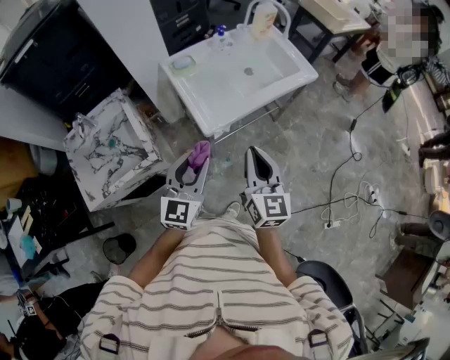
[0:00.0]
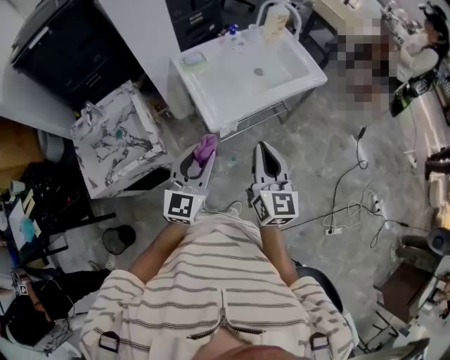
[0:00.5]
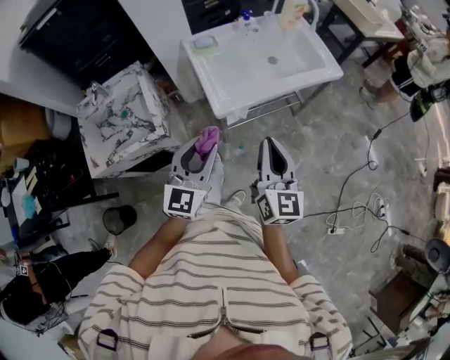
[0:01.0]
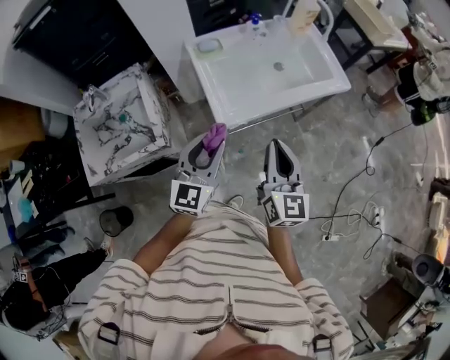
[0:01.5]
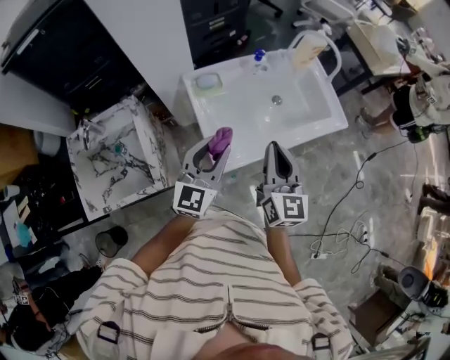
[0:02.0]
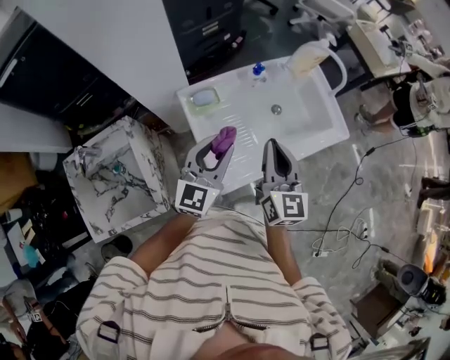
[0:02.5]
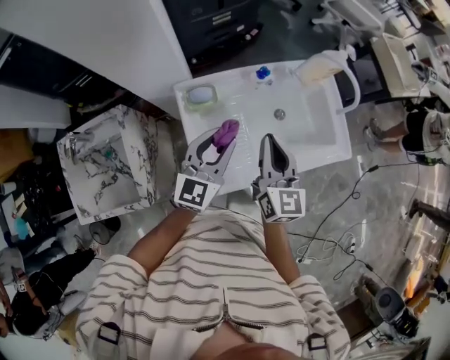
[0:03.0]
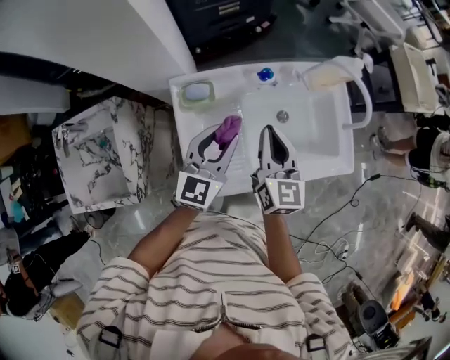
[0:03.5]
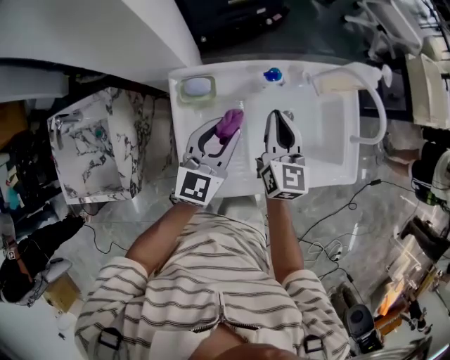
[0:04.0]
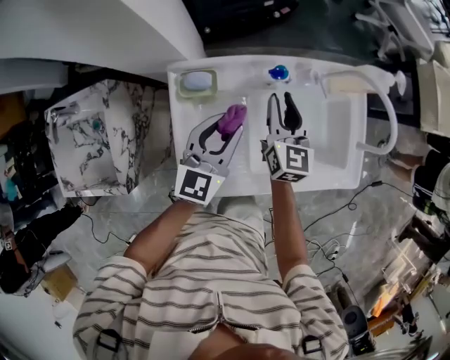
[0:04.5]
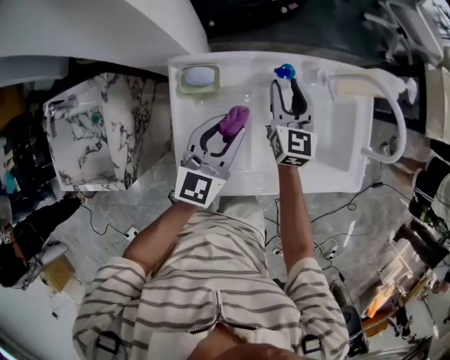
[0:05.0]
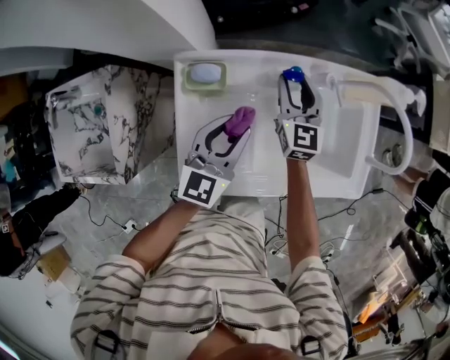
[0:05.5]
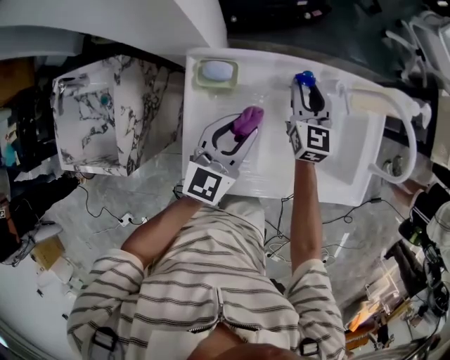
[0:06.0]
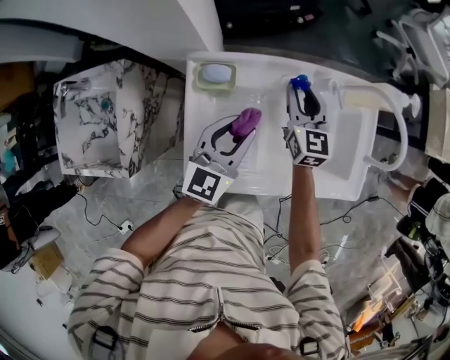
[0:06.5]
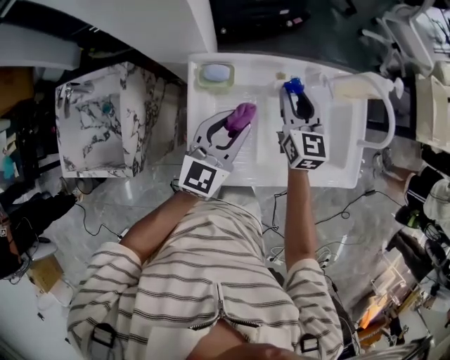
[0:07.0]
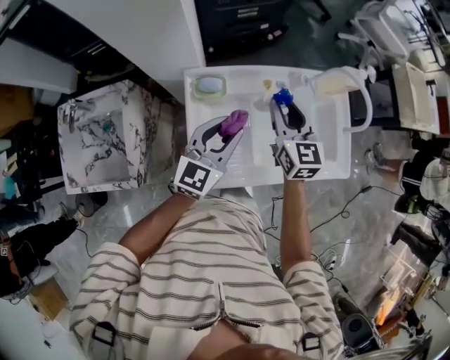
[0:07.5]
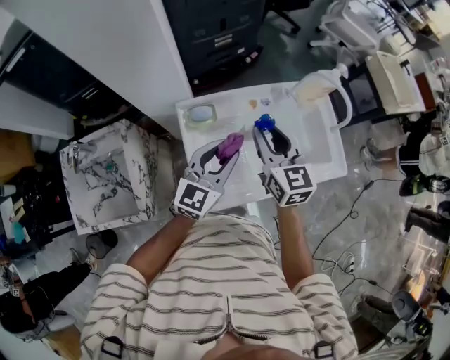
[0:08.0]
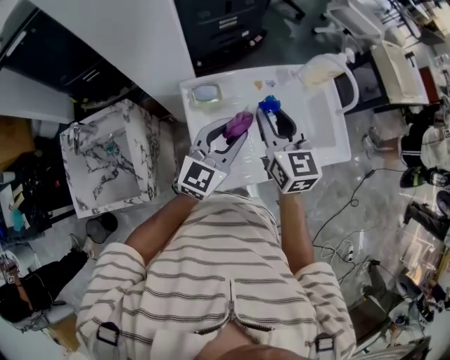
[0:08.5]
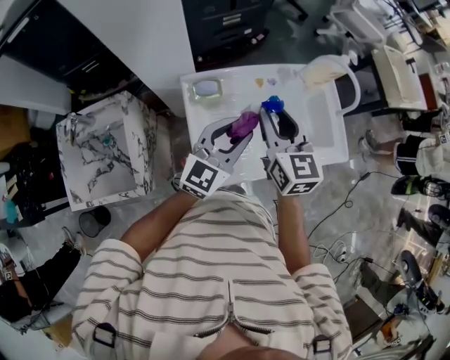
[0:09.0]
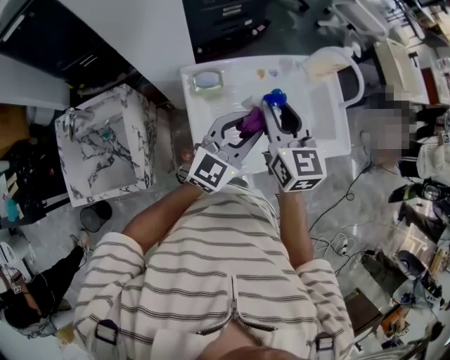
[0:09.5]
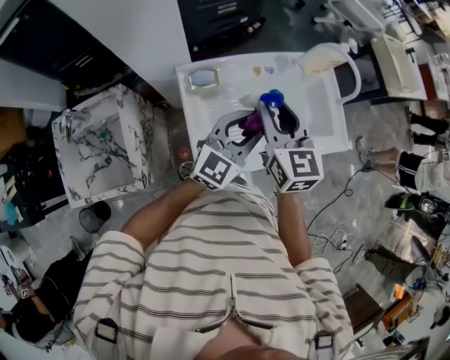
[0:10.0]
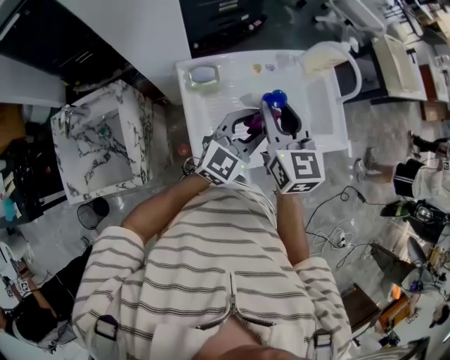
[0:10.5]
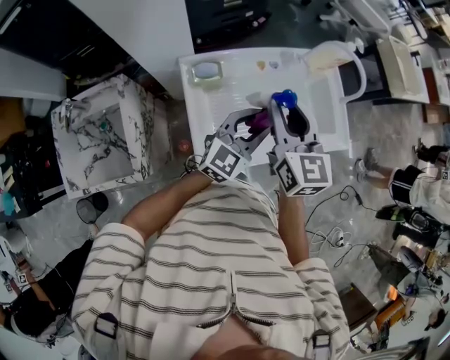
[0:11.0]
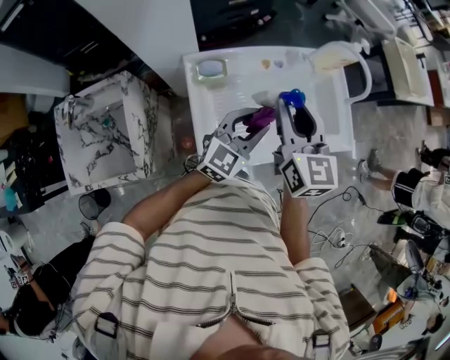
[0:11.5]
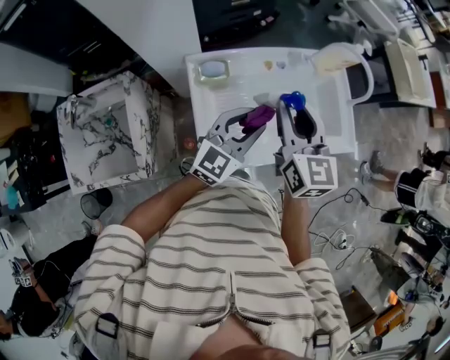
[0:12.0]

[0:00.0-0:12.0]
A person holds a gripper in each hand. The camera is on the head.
0:00.0 to 0:02.0: Both grippers move forward, approximately 20 cm.
0:02.0 to 0:04.0: The left gripper shifts roughly 25 cm forward. The right gripper shifts roughly 30 cm forward and downward.
0:04.0 to 0:06.0: The right gripper goes roughly 15 cm forward and downward, and opens.
0:06.0 to 0:08.0: The right gripper shifts some 25 cm upward and backward, while the left gripper moves upward and backward, approximately 15 cm.
0:08.0 to 0:10.0: The left gripper goes some 5 cm to the right.
0:10.0 to 0:12.0: There are only small adjustments of the grippers.

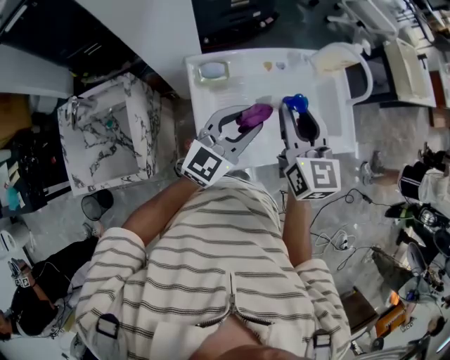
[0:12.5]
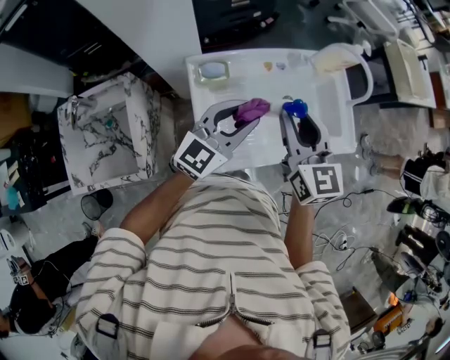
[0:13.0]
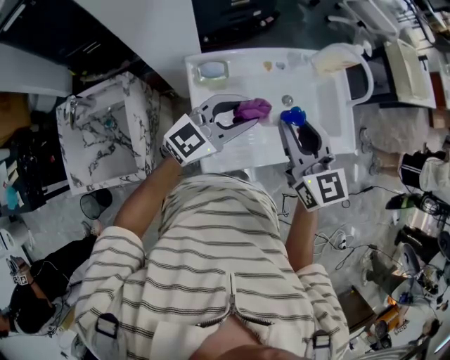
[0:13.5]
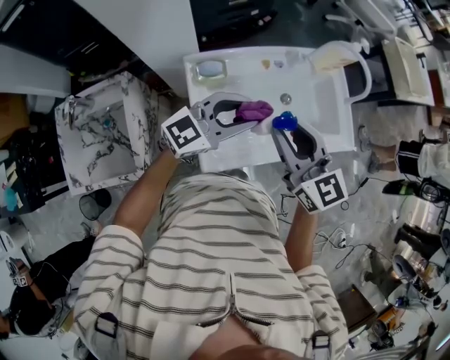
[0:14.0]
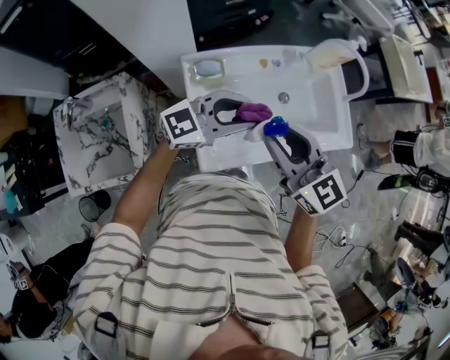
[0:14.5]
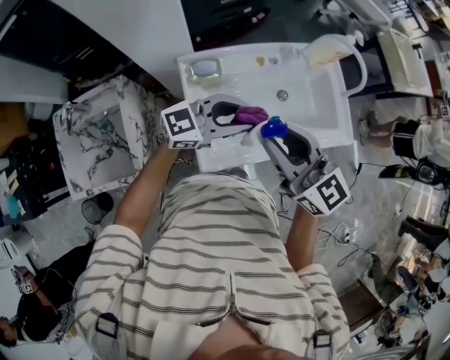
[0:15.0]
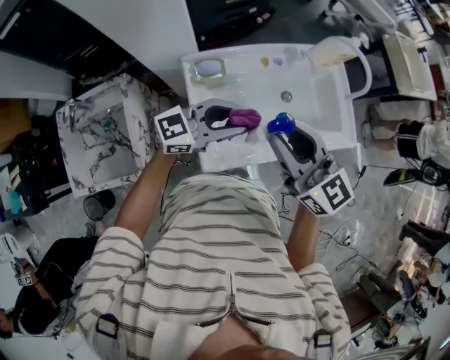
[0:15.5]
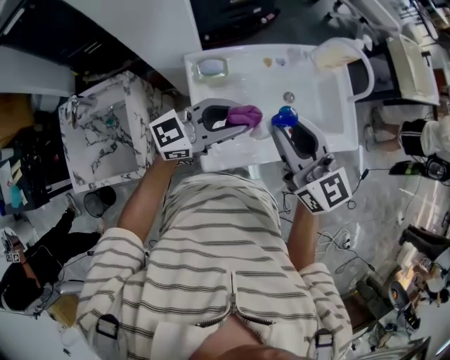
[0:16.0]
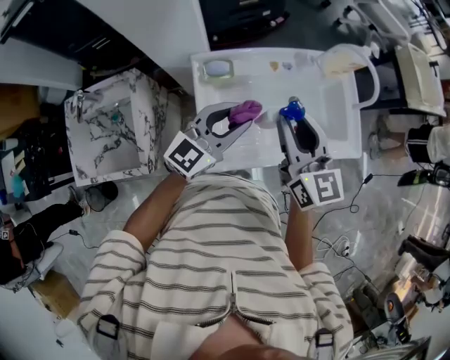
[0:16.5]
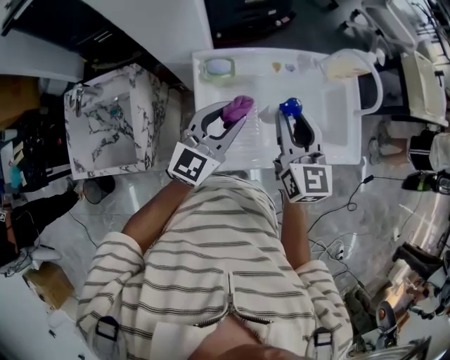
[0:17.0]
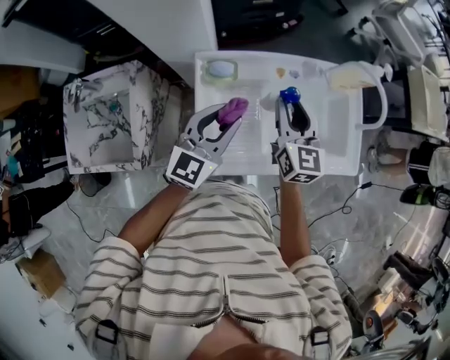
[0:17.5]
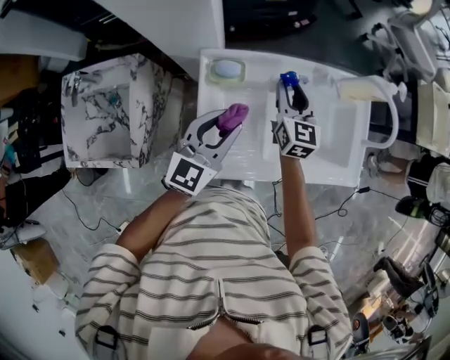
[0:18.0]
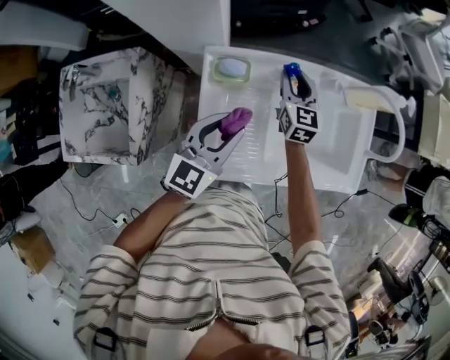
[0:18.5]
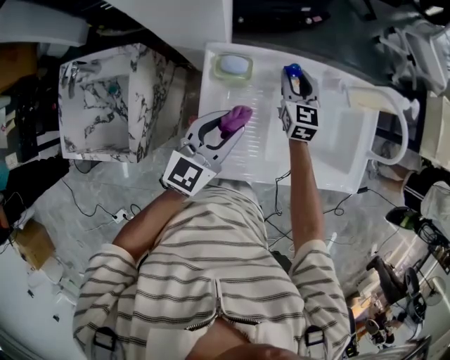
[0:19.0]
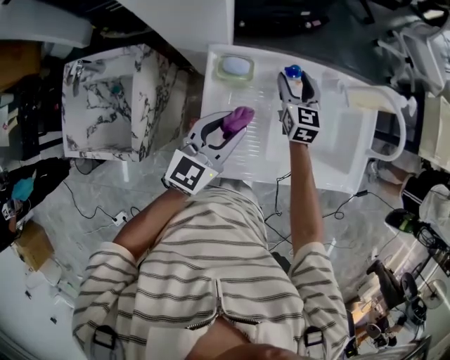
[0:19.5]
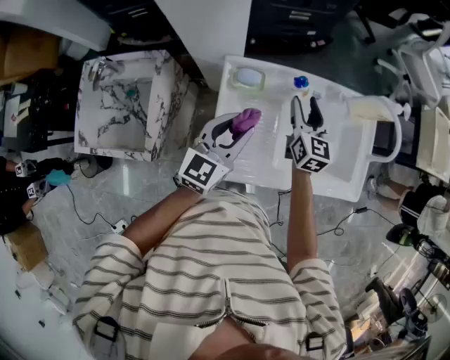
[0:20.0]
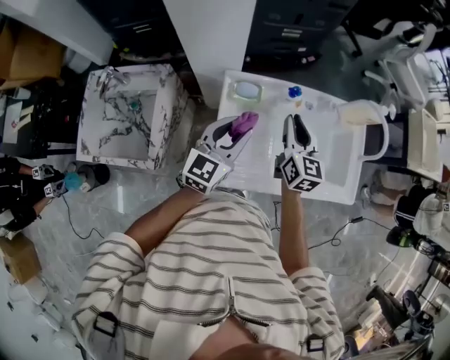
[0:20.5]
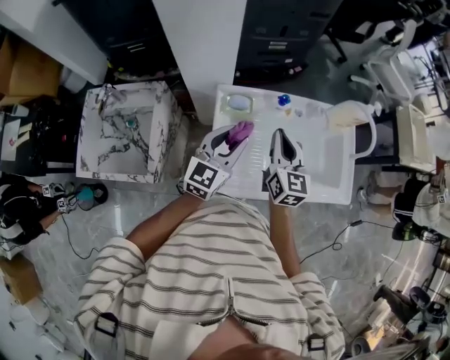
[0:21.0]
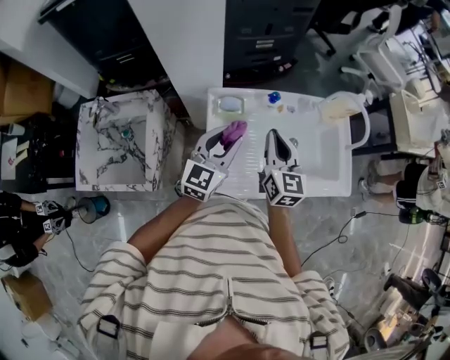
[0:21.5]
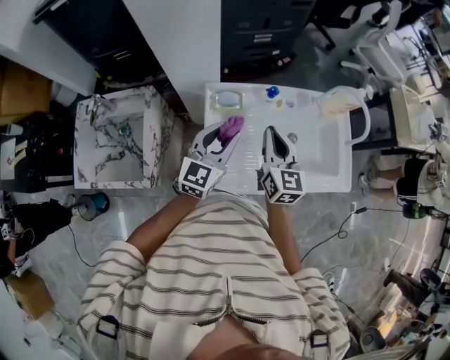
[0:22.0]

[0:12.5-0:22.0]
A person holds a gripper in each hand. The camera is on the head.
0:12.5 to 0:14.5: The right gripper goes some 10 cm backward, and rotates about 30 degrees; the left gripper rotates some 30 degrees.
0:14.5 to 0:16.5: The right gripper changes place by about 5 cm. The left gripper changes its angle by some 30 degrees.
0:16.5 to 0:18.0: The right gripper goes roughly 25 cm forward and downward. The left gripper moves some 10 cm, and changes its angle by about 20 degrees.
0:20.0 to 0:22.0: The right gripper travels backward and upward by approximately 15 cm, and closes.

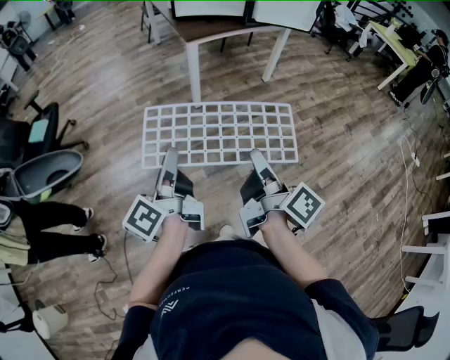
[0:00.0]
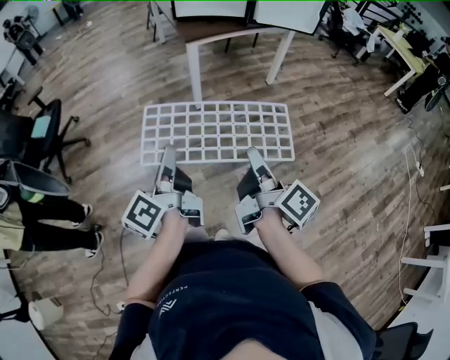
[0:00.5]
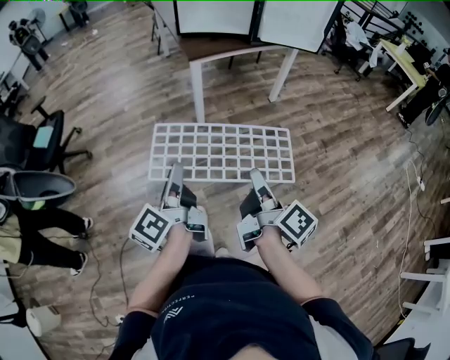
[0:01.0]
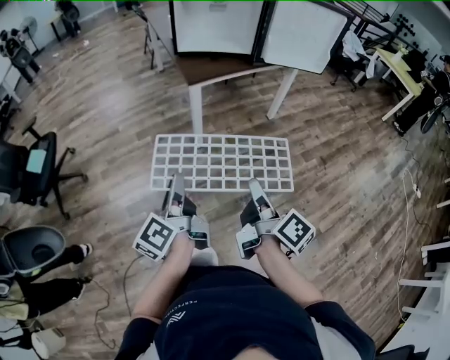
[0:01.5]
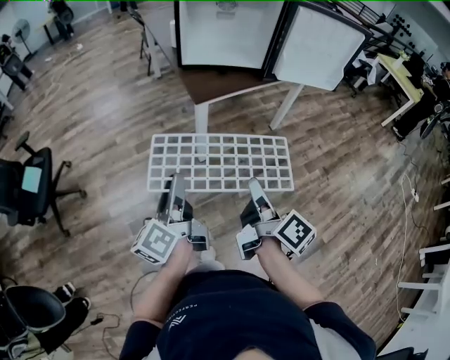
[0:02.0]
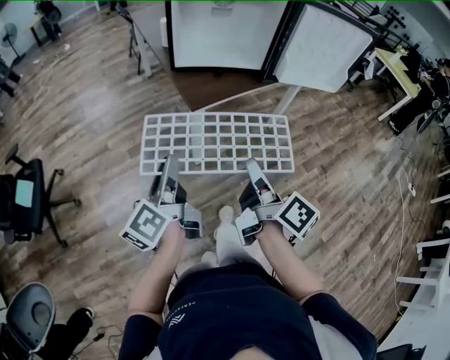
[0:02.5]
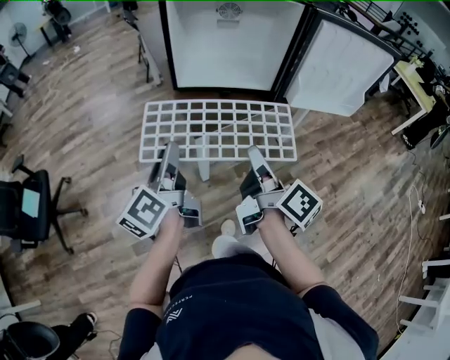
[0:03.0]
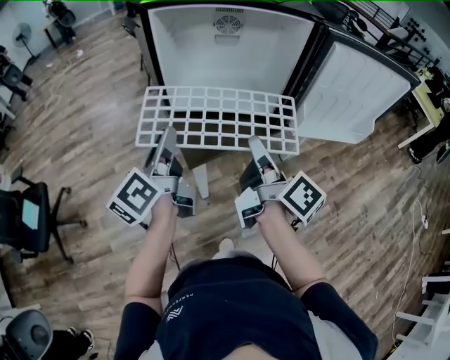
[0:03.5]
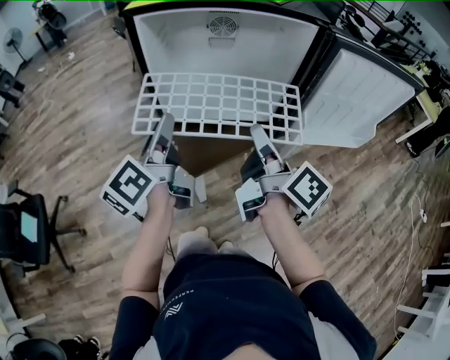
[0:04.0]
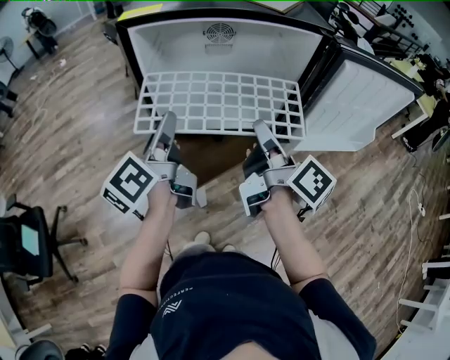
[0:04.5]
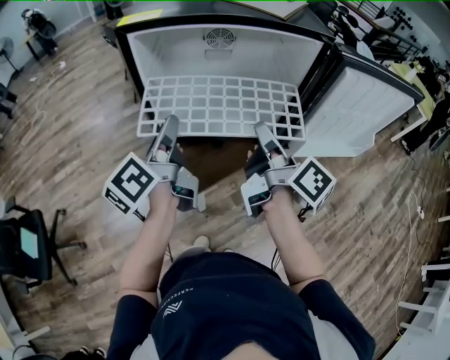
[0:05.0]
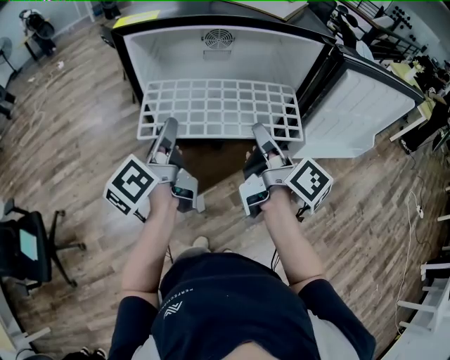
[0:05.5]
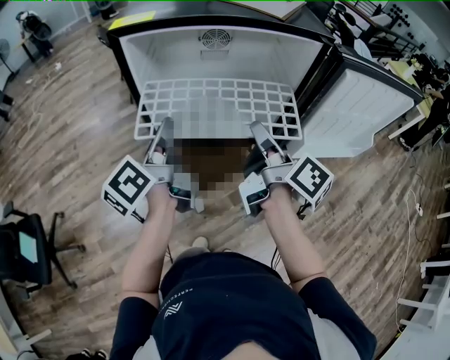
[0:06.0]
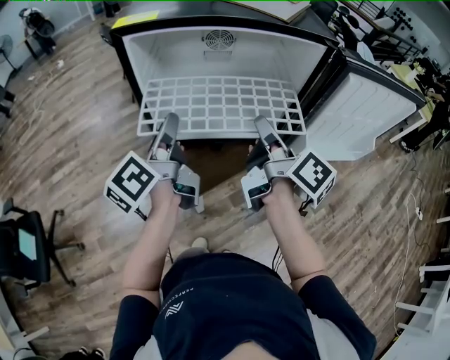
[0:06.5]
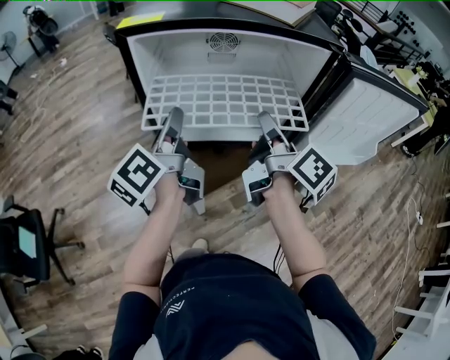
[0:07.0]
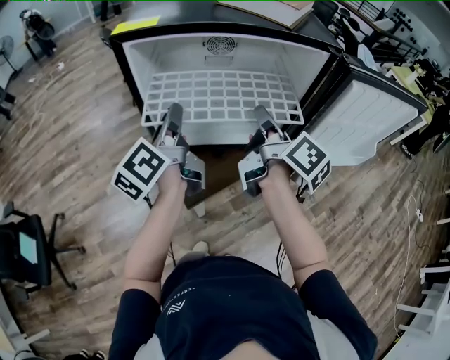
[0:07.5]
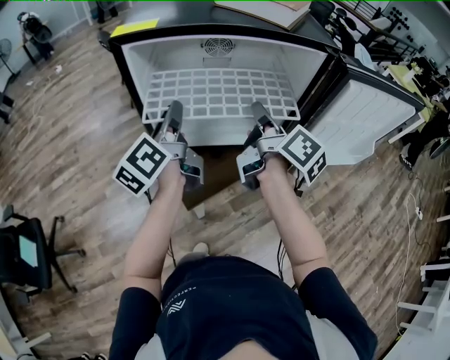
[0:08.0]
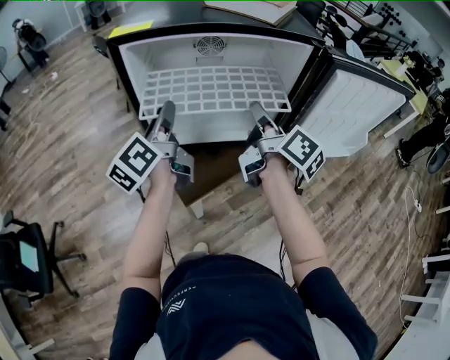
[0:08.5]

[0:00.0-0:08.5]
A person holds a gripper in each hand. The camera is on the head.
0:00.0 to 0:02.0: The grippers both shift forward by roughly 30 cm.
0:02.0 to 0:04.0: The two grippers travel together, forward, some 40 cm.
0:04.0 to 0:06.5: Both grippers travel together forward, approximately 10 cm.
0:06.5 to 0:08.5: Both grippers travel together forward, approximately 5 cm.
